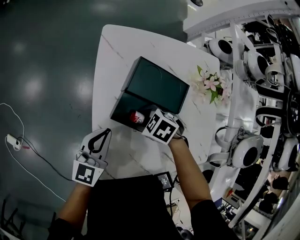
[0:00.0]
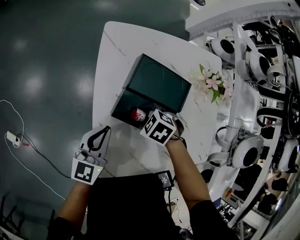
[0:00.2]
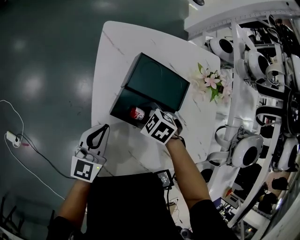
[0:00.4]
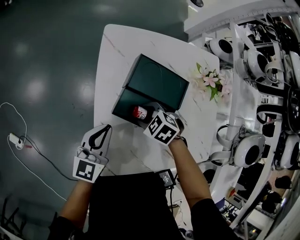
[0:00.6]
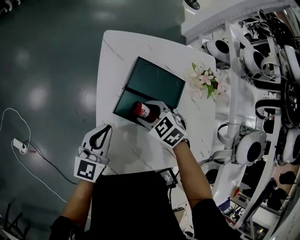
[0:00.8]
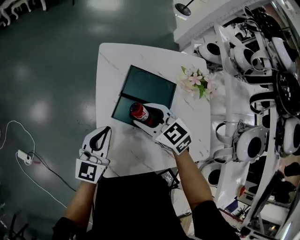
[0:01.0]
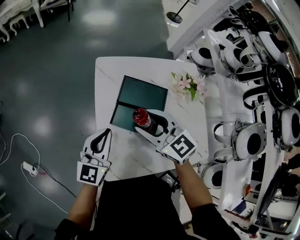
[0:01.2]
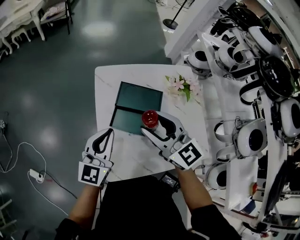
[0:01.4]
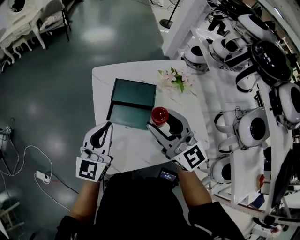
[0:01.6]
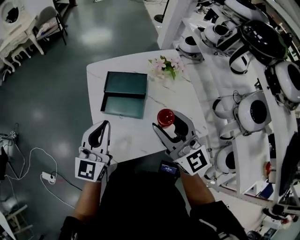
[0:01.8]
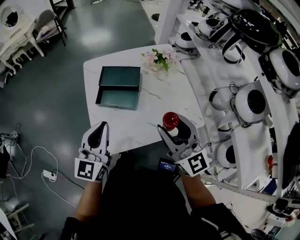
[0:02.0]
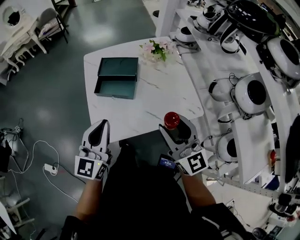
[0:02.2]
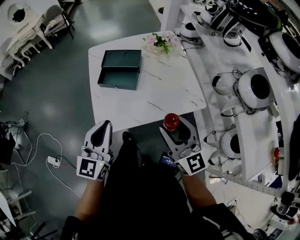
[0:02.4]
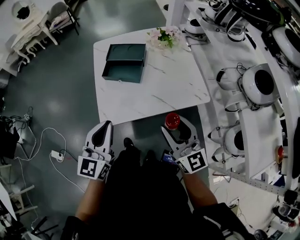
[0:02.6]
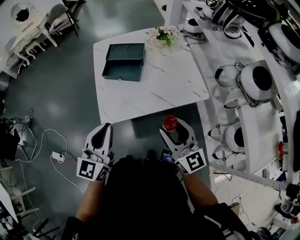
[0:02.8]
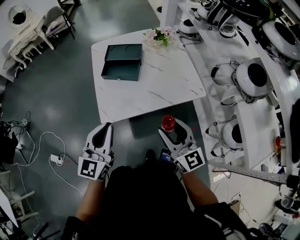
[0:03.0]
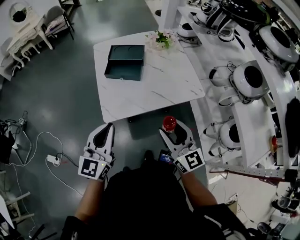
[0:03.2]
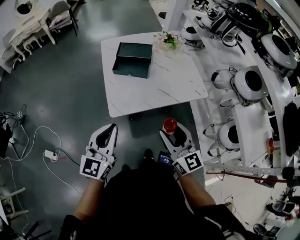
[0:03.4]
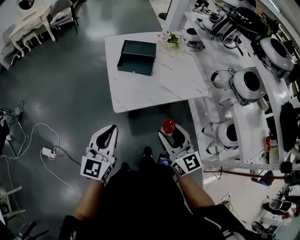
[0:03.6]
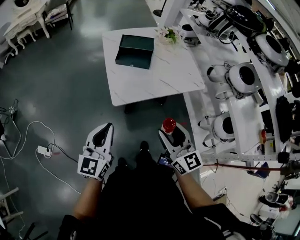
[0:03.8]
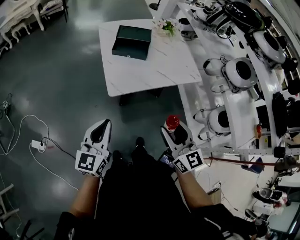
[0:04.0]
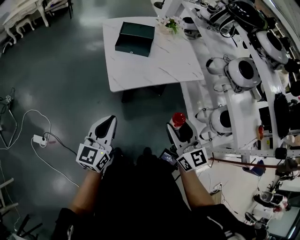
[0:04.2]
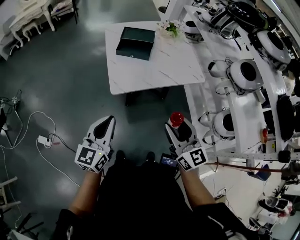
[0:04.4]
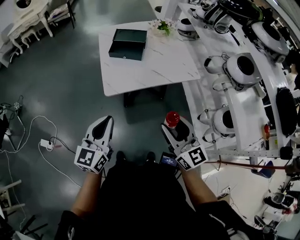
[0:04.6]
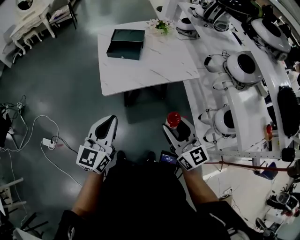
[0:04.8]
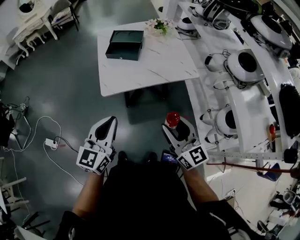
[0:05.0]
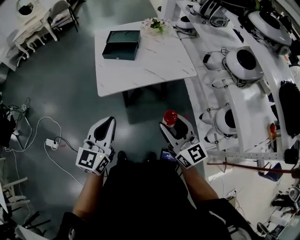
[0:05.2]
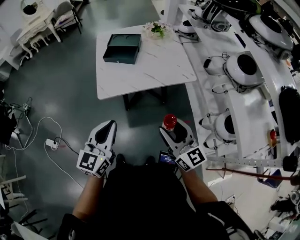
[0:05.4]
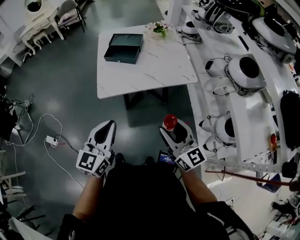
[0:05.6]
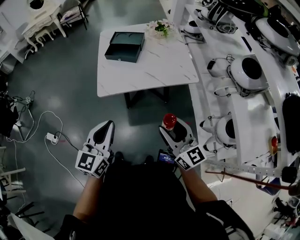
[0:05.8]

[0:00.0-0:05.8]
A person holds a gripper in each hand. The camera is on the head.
0.0 to 1.4 s: The right gripper is displaced upward by some 30 cm, and tilts its fingers roughly 60 degrees upward, while the left gripper heads upward, covering some 15 cm.
1.4 to 2.8 s: The right gripper shifts about 40 cm backward and to the right, and swivels about 20 degrees. The left gripper is displaced backward by roughly 30 cm.
2.8 to 4.4 s: Both grippers move backward and to the left, some 20 cm.
4.4 to 5.8 s: The two grippers go about 15 cm to the right.

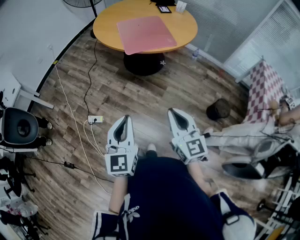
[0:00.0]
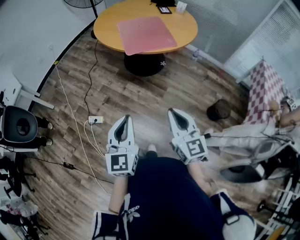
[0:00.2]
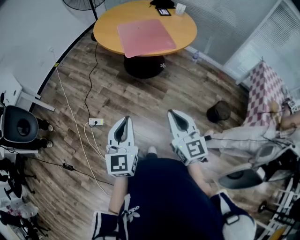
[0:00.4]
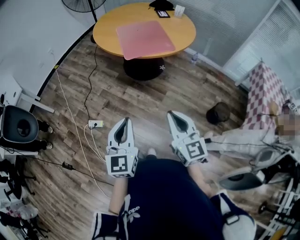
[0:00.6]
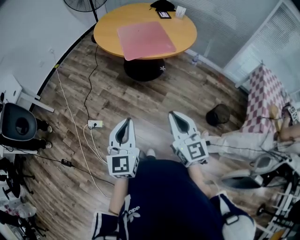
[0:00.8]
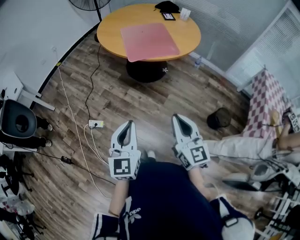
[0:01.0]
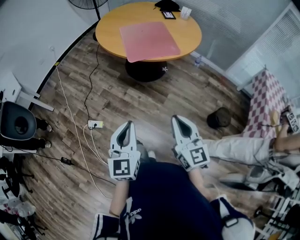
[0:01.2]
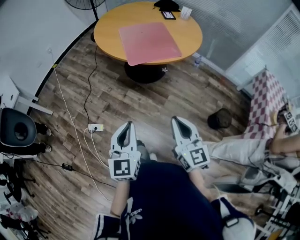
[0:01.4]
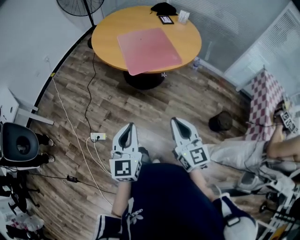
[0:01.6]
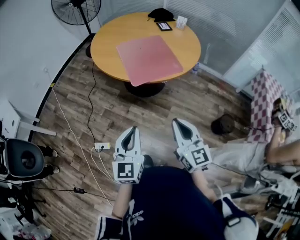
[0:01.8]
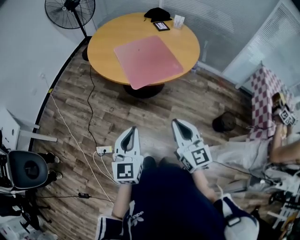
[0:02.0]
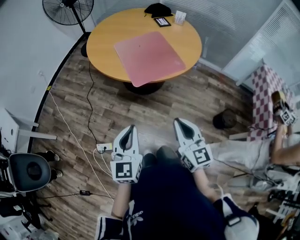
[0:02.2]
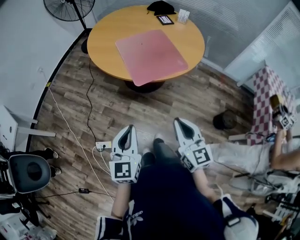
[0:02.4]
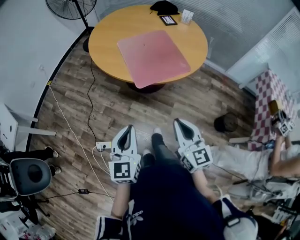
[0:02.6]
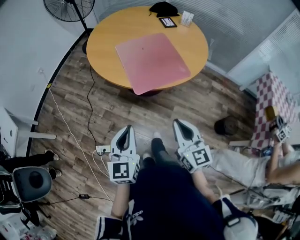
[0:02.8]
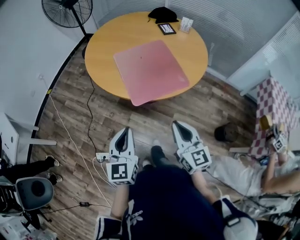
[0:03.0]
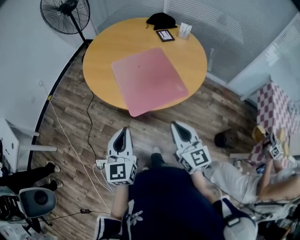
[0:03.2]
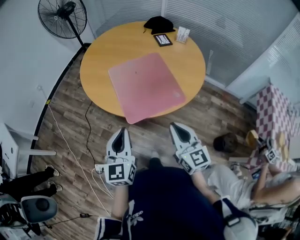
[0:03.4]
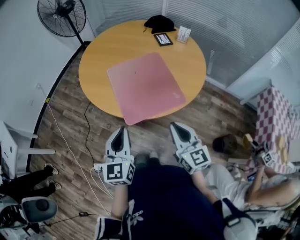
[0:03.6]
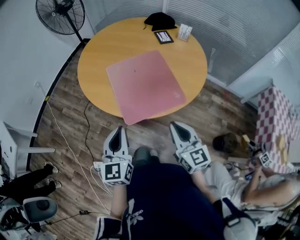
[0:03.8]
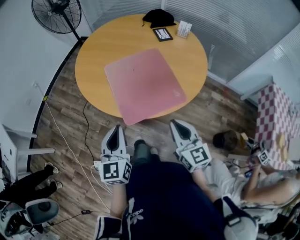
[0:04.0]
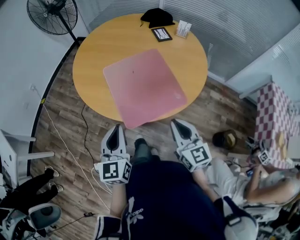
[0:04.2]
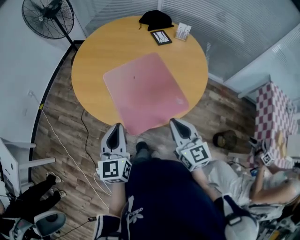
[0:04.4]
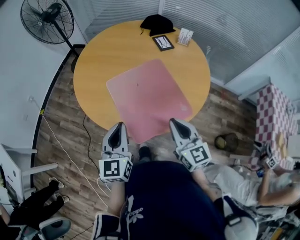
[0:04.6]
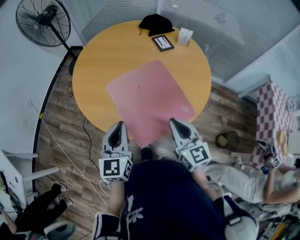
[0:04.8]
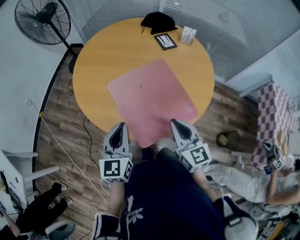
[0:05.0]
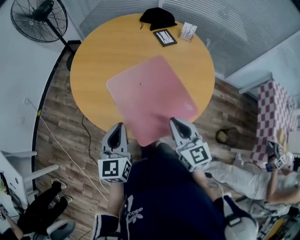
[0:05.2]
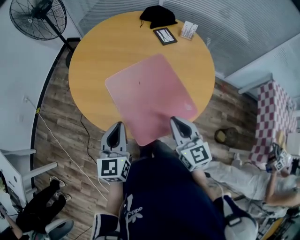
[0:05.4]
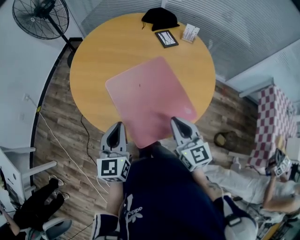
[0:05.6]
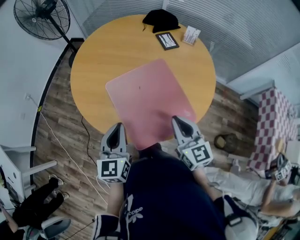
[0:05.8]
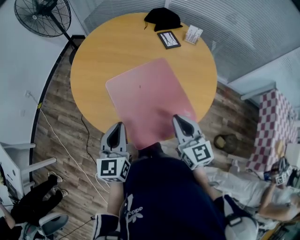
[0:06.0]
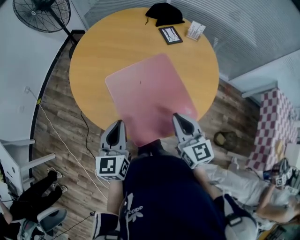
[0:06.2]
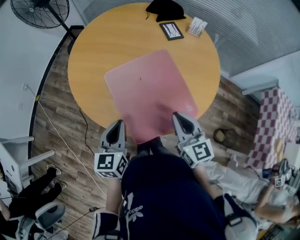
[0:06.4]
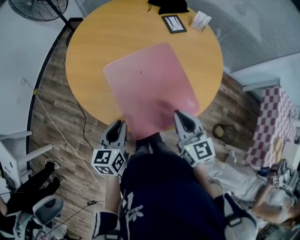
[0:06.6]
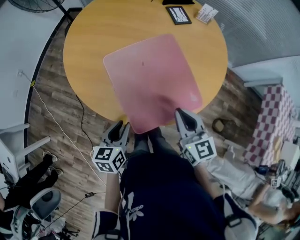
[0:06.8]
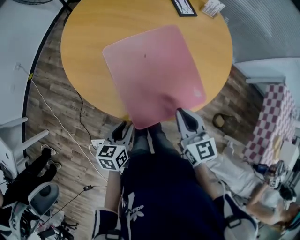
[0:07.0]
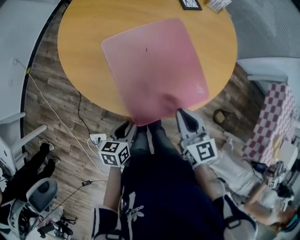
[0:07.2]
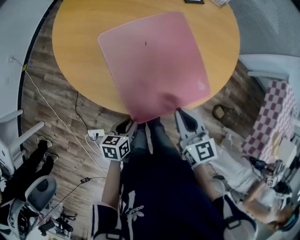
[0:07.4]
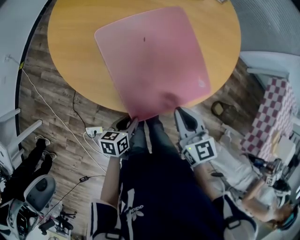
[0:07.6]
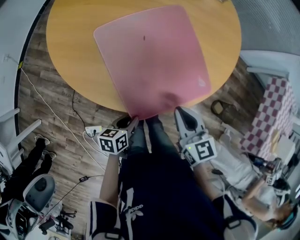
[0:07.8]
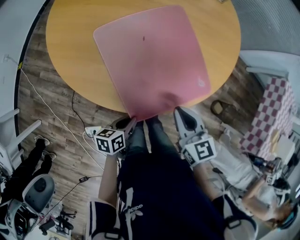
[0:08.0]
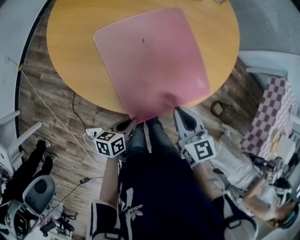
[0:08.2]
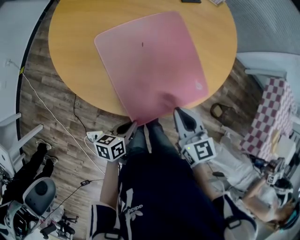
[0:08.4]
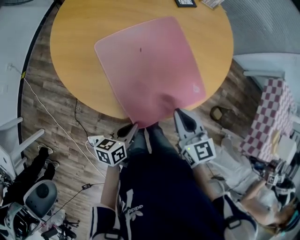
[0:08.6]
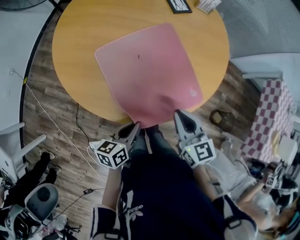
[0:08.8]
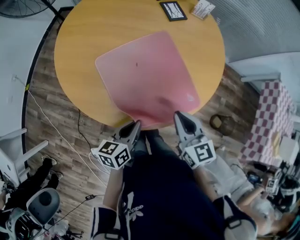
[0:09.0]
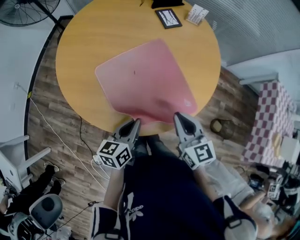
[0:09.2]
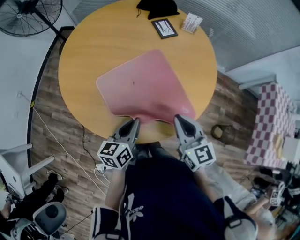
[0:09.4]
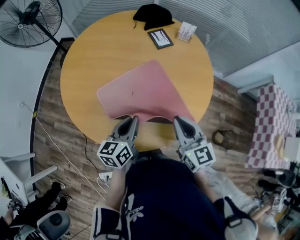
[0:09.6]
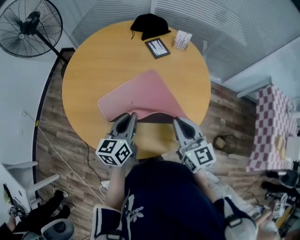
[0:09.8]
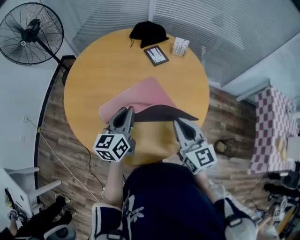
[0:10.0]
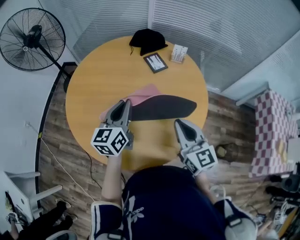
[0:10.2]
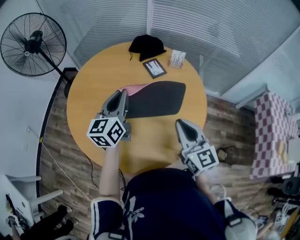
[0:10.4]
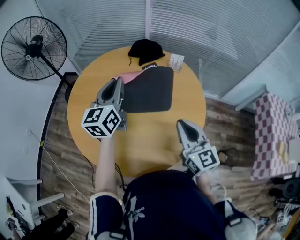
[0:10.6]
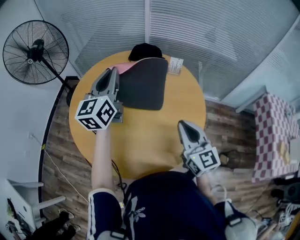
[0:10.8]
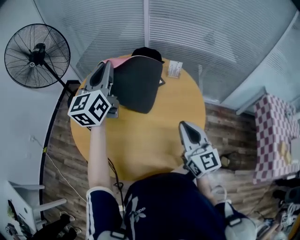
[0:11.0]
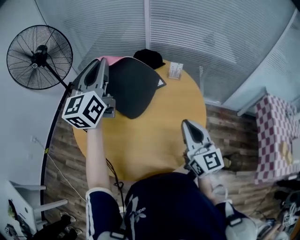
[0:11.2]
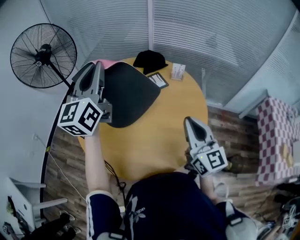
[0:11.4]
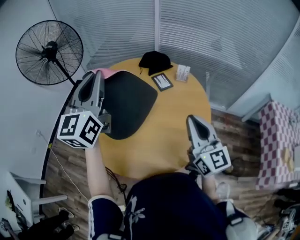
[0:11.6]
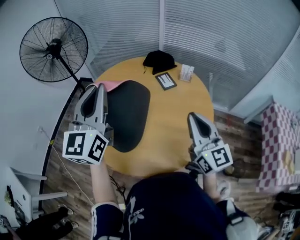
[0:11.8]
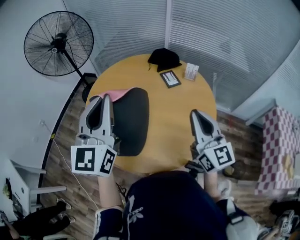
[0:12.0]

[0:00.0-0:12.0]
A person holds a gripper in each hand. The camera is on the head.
0.0 to 1.6 s: The two grippers go some 10 cm forward.
1.6 to 3.0 s: Both grippers travel together forward, roughly 20 cm.
3.0 to 4.4 s: The grippers both shift forward by some 20 cm.
4.4 to 6.0 s: Both grippers move forward, approximately 10 cm.
6.0 to 7.6 s: The left gripper travels downward and backward by roughly 30 cm, rotates about 50 degrees, and opens up, while the right gripper goes roughly 10 cm downward and backward.
7.6 to 9.0 s: The left gripper is displaced upward and forward by roughly 15 cm, swivels about 20 degrees, and closes its fingers, while the right gripper moves some 5 cm.
9.0 to 10.4 s: The left gripper travels forward and upward by about 35 cm, and rotates roughly 40 degrees, while the right gripper shifts some 15 cm upward and forward, and changes its angle by roughly 20 degrees.
10.4 to 12.0 s: The right gripper shifts about 10 cm upward. The left gripper goes about 25 cm upward, backward and to the left, and turns by approximately 30 degrees.

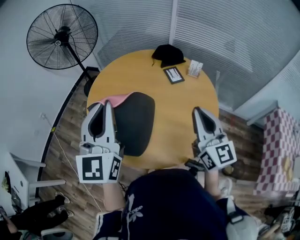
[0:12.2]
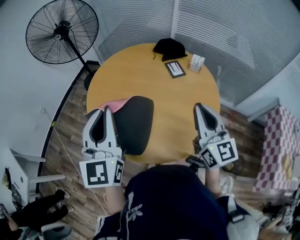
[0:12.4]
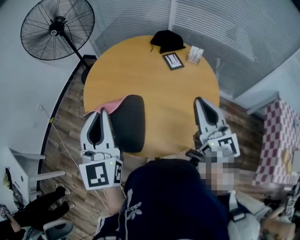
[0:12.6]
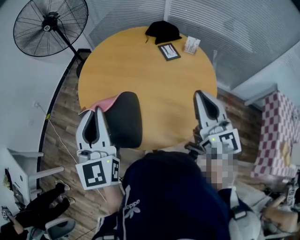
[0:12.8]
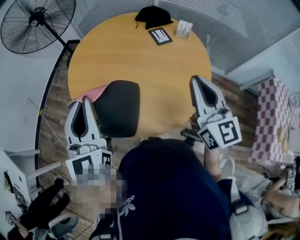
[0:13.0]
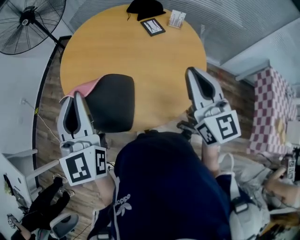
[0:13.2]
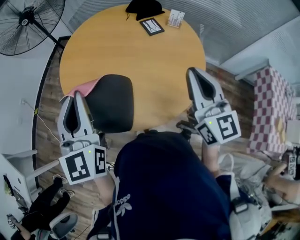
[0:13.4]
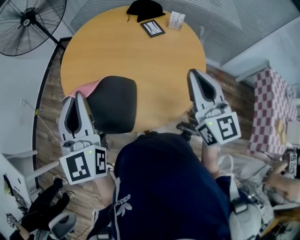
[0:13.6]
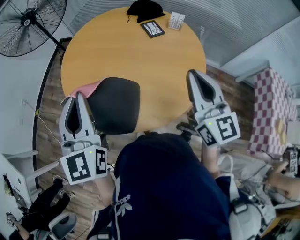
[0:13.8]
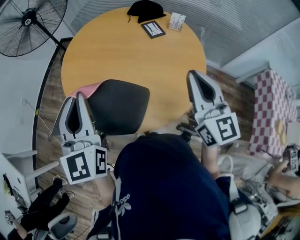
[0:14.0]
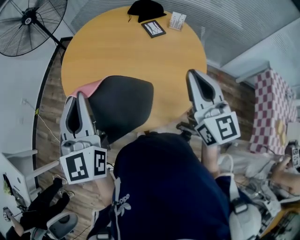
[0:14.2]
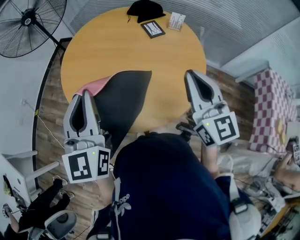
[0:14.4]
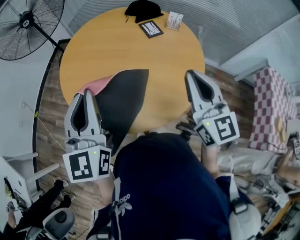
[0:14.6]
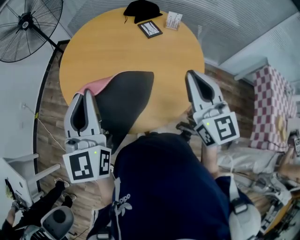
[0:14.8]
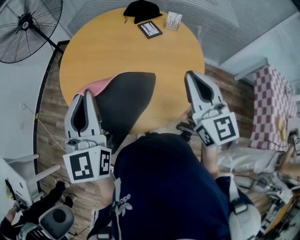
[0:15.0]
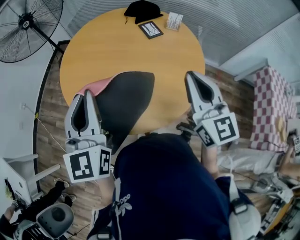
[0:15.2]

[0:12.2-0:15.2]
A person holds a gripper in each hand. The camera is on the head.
12.2 to 13.8 s: The left gripper heads downward, covering some 5 cm.
13.8 to 15.2 s: The grippers make only small movements.

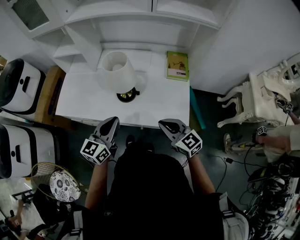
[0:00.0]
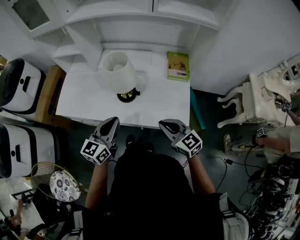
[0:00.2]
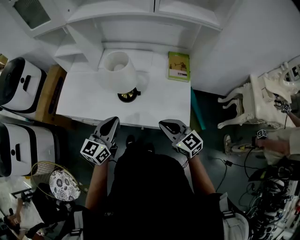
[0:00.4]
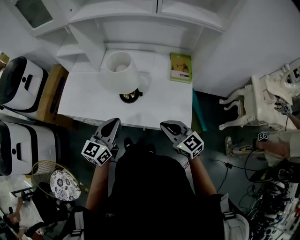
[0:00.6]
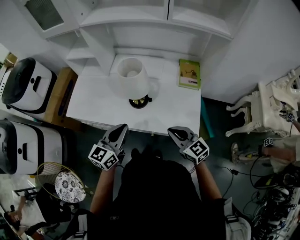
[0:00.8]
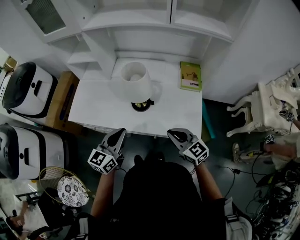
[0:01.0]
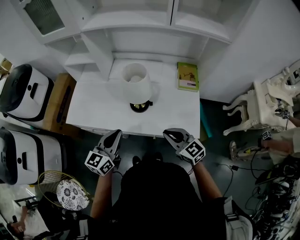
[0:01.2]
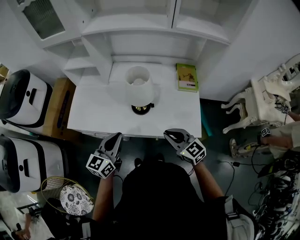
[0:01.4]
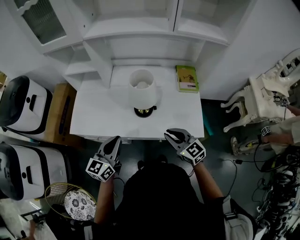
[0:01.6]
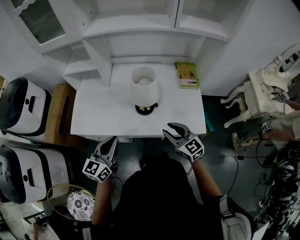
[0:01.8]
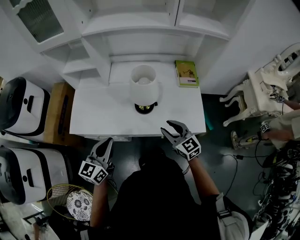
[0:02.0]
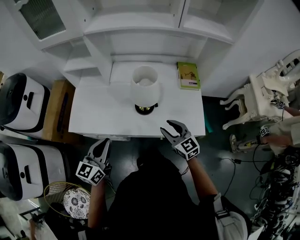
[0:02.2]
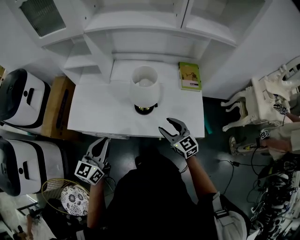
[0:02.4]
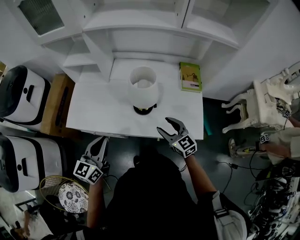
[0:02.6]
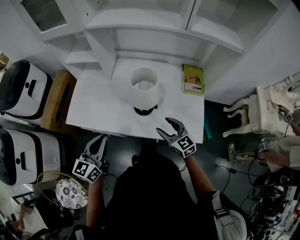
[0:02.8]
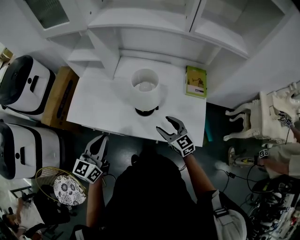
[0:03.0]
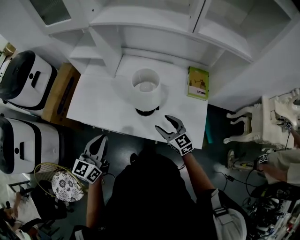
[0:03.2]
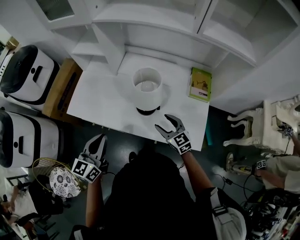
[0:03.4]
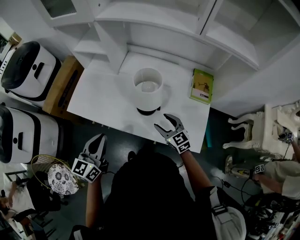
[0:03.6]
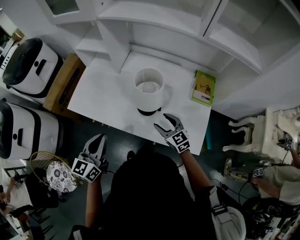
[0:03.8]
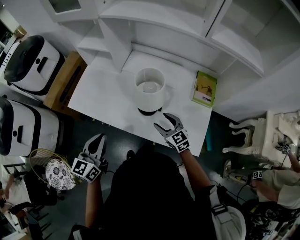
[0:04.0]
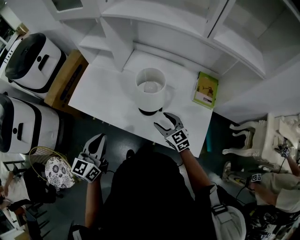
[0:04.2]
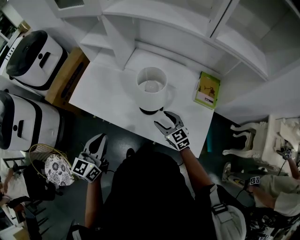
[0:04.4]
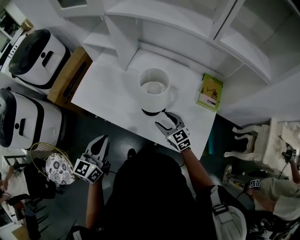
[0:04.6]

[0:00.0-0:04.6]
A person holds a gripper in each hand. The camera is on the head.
0.0 to 1.6 s: Both grippers move to the left, roughly 10 cm.
1.6 to 3.0 s: The right gripper moves forward and downward, some 10 cm, and opens its fingers.
3.0 to 4.6 s: The right gripper moves forward and downward, some 5 cm.
